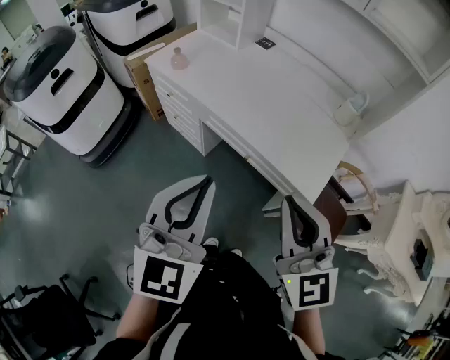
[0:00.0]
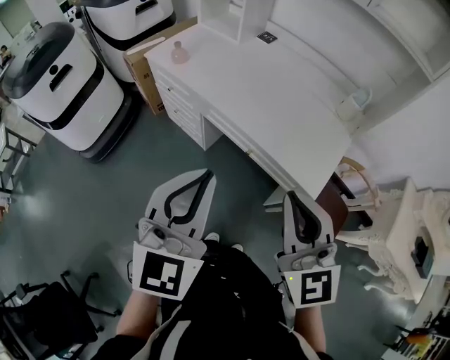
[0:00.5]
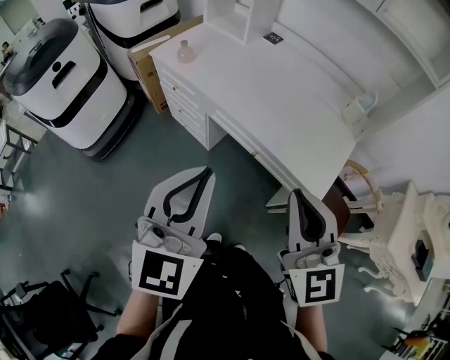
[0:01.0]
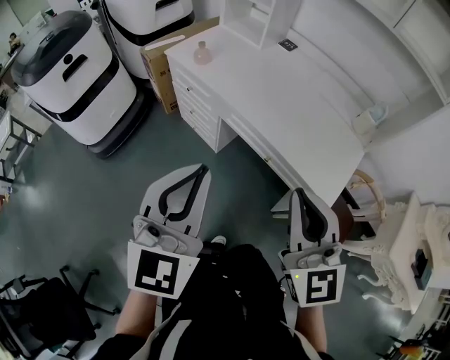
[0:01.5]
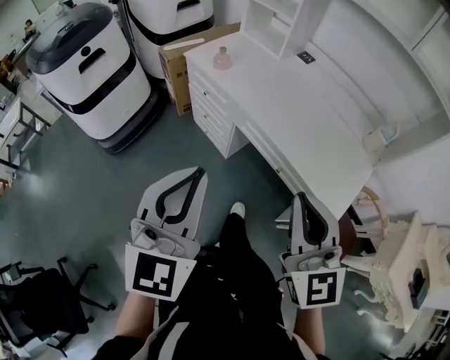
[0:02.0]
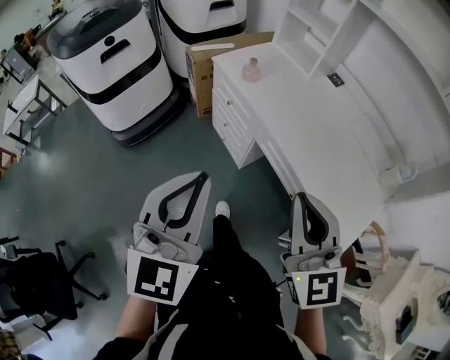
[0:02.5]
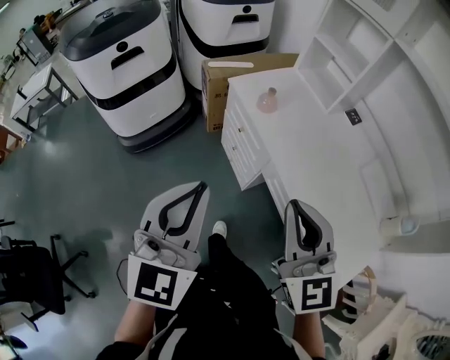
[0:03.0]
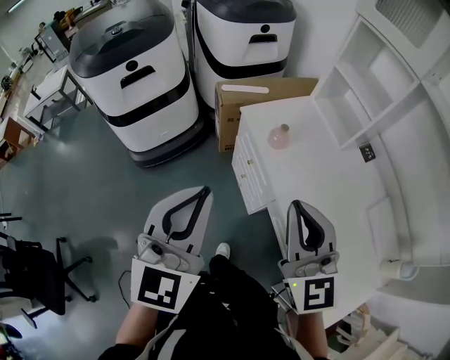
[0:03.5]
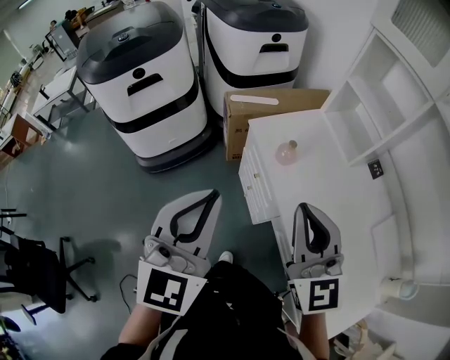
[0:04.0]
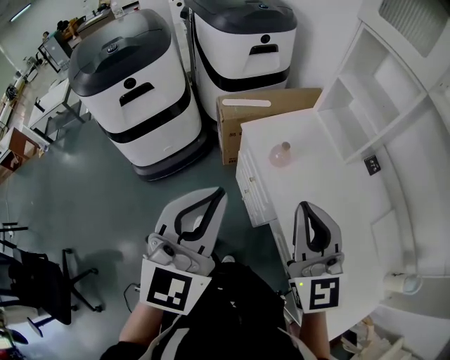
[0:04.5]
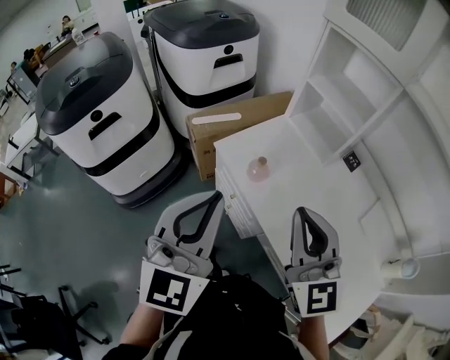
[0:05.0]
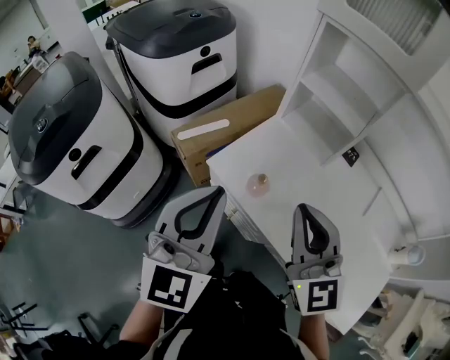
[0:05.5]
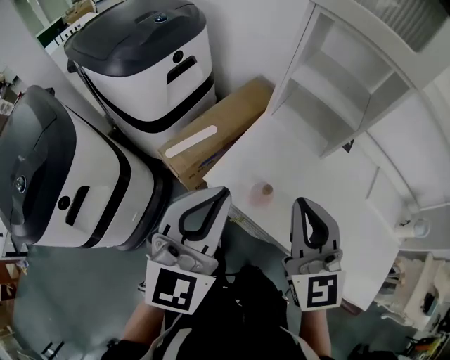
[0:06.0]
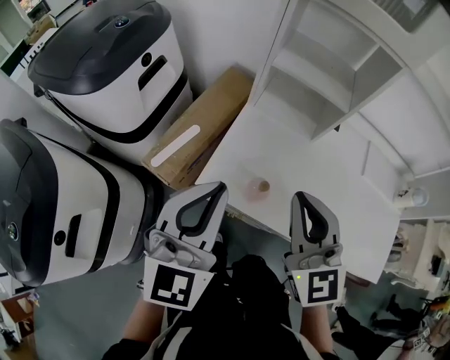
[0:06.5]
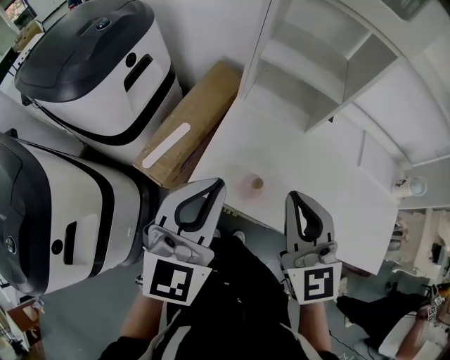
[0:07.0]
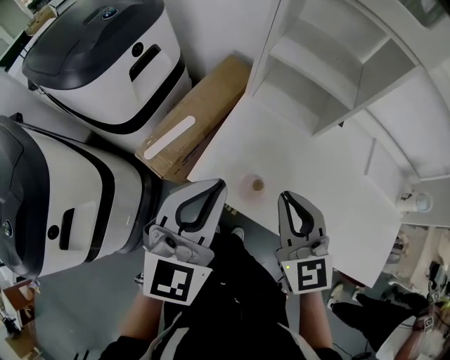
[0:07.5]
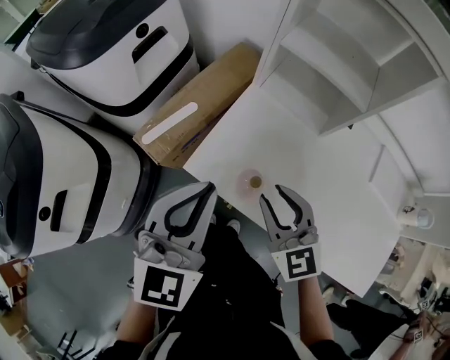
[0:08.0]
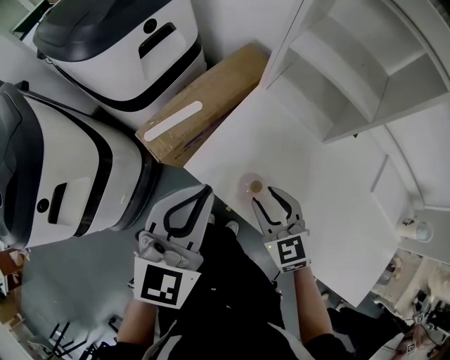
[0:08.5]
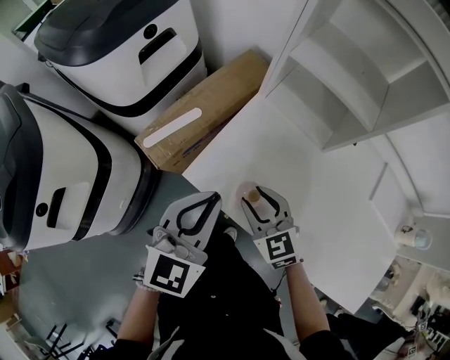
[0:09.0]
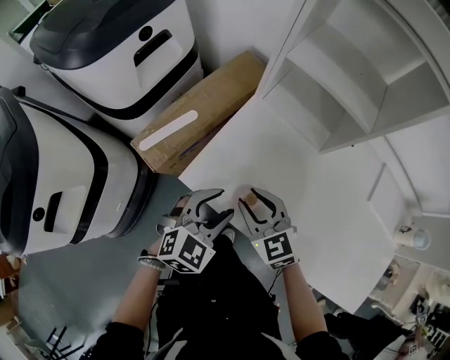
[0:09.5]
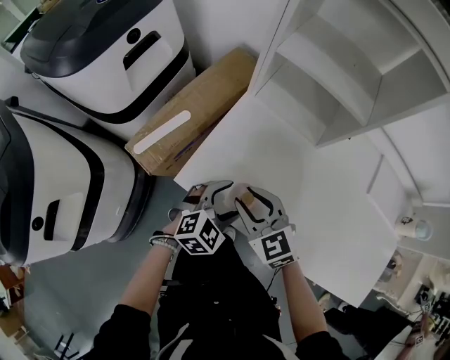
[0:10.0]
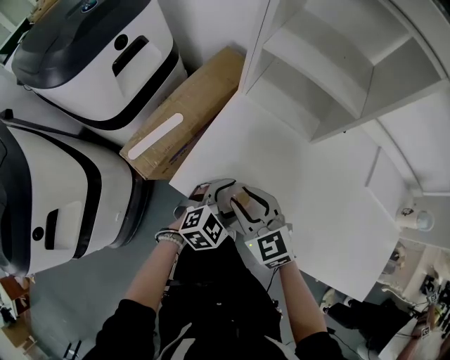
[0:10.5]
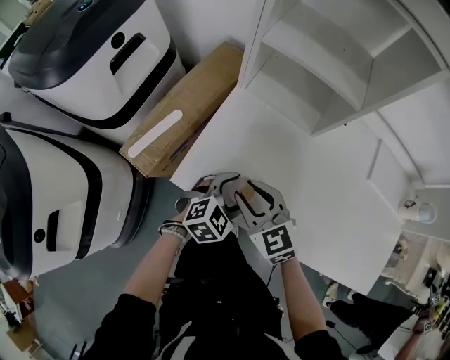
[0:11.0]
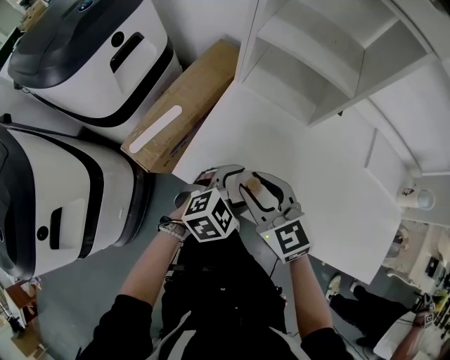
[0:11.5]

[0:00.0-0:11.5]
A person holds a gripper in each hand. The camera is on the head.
0:00.0 to 0:02.0: The two grippers go approximately 10 cm to the left.
0:02.0 to 0:04.0: Both grippers travel together forward, approximately 35 cm. The right gripper swivels about 20 degrees. Meanwhile the left gripper turns by about 20 degrees.
0:04.0 to 0:06.0: The right gripper moves about 20 cm, and changes its angle by approximately 30 degrees; the left gripper shifts by roughly 30 cm, and turns by approximately 40 degrees.
0:06.0 to 0:07.5: The right gripper moves downward, roughly 10 cm. Meanwhile the left gripper moves forward, roughly 5 cm.
0:07.5 to 0:09.5: Both grippers move downward, about 20 cm. The left gripper rotates about 30 degrees, and opens; the right gripper turns by approximately 30 degrees, and opens up.
0:09.5 to 0:11.5: The right gripper travels upward by some 5 cm. The left gripper shifts approximately 5 cm to the right, swivels approximately 20 degrees, and opens up.

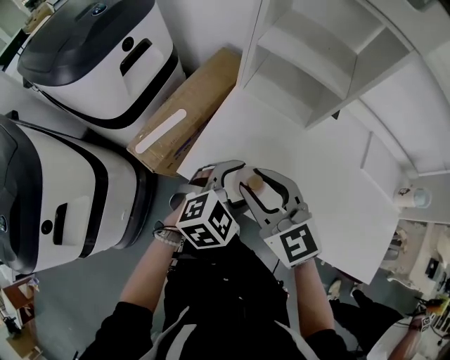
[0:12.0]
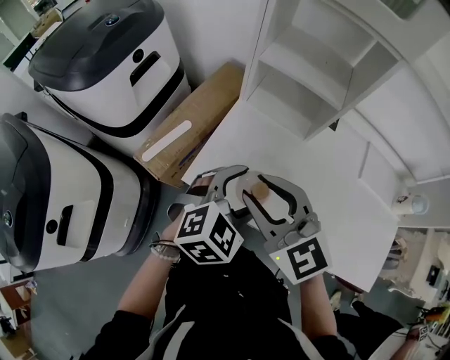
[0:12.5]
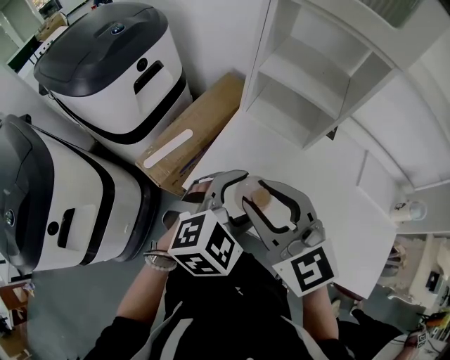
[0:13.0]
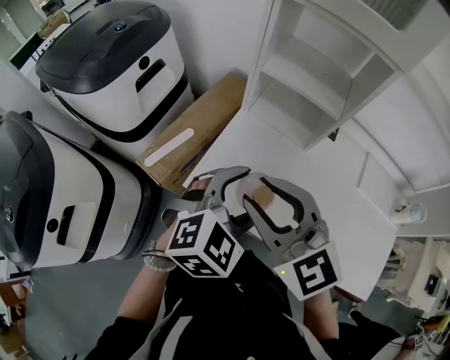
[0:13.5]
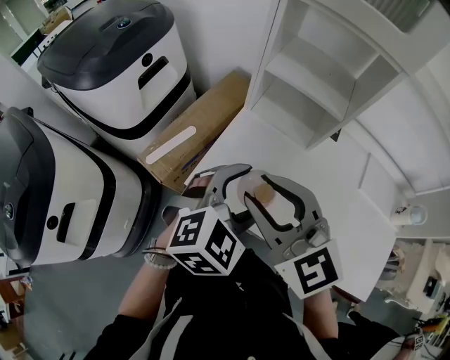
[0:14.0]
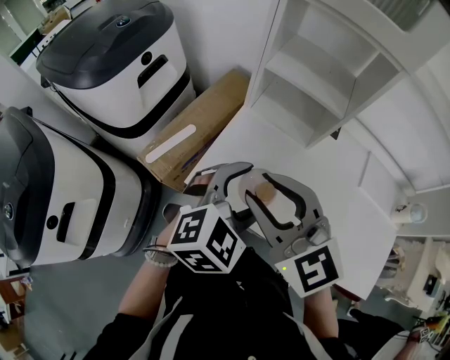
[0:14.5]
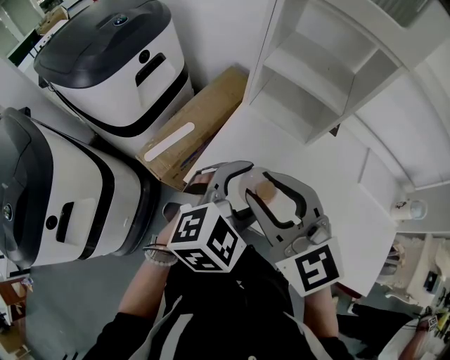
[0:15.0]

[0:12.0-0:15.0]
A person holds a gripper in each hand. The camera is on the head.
0:12.0 to 0:13.5: The grippers both shift upward by some 10 cm.
0:13.5 to 0:15.0: Neither gripper changes place.

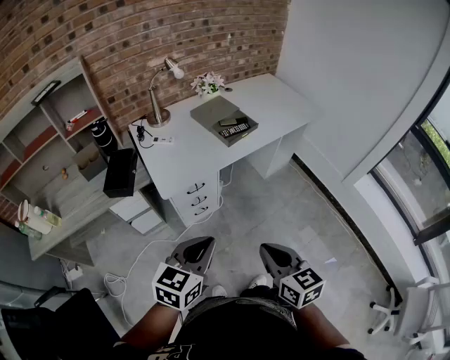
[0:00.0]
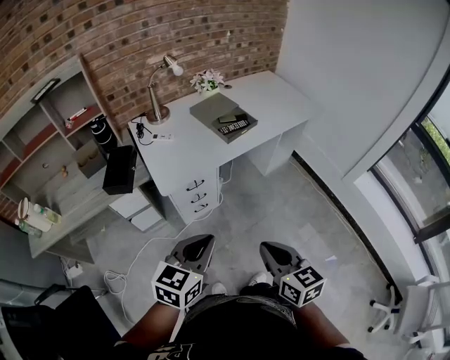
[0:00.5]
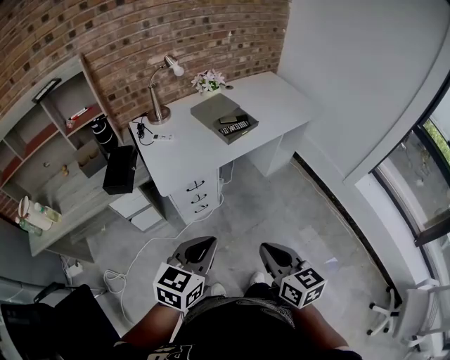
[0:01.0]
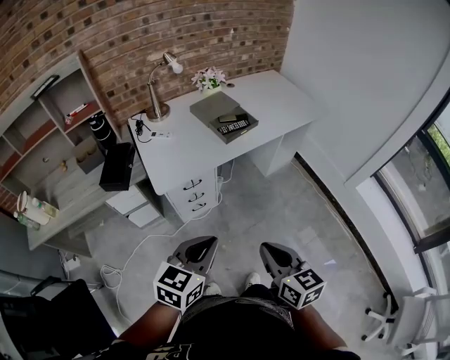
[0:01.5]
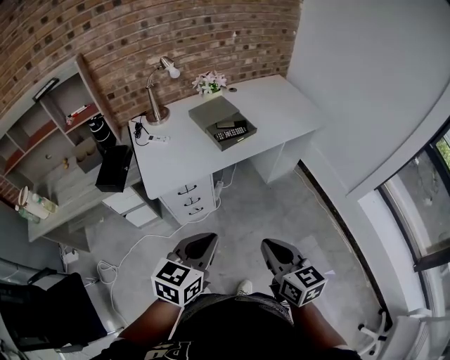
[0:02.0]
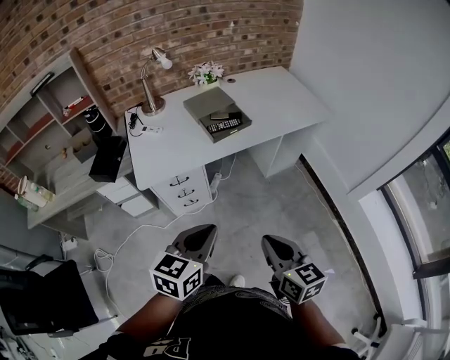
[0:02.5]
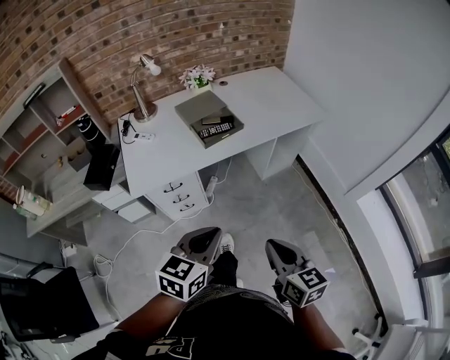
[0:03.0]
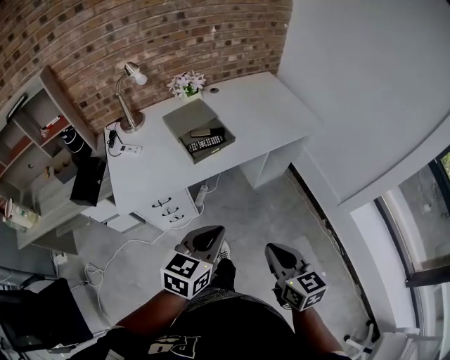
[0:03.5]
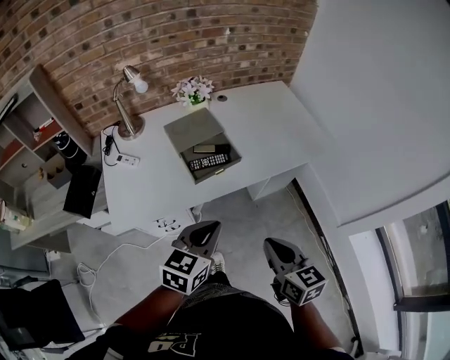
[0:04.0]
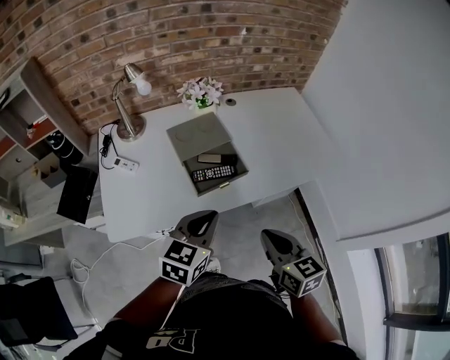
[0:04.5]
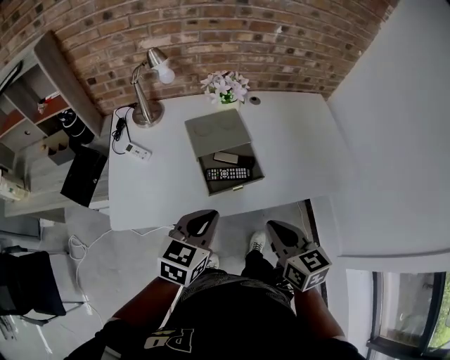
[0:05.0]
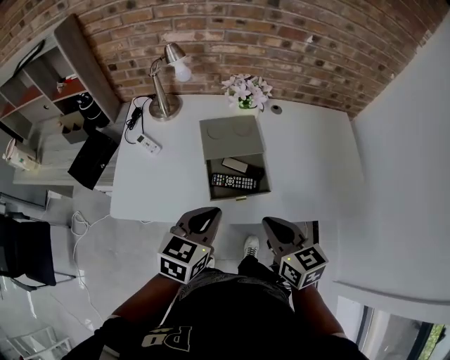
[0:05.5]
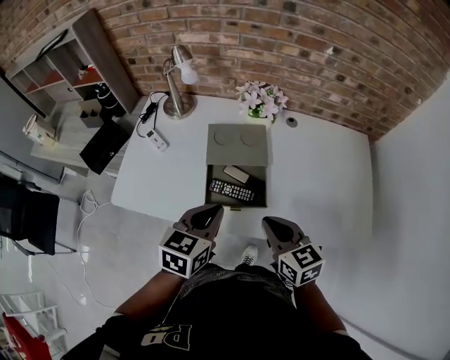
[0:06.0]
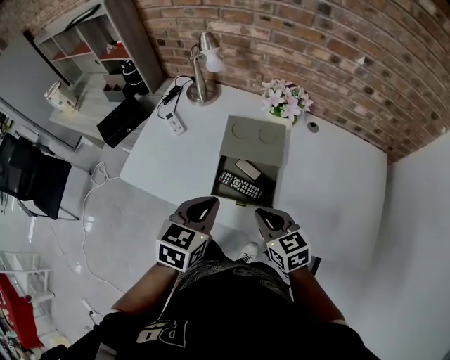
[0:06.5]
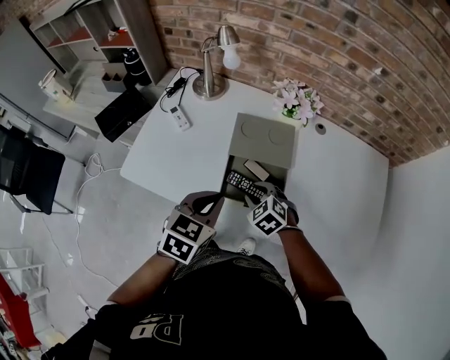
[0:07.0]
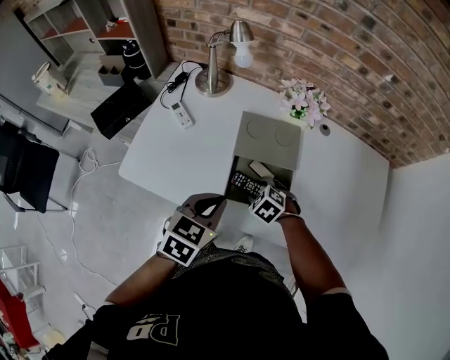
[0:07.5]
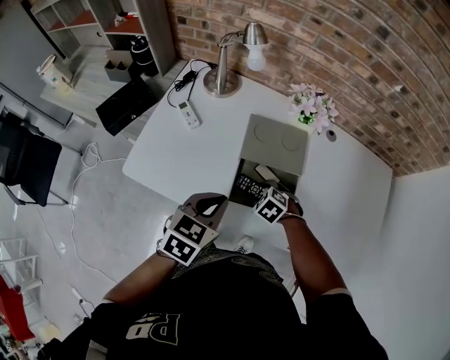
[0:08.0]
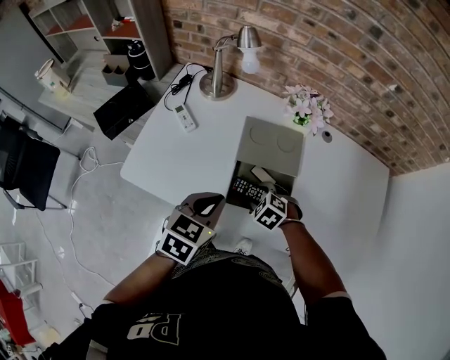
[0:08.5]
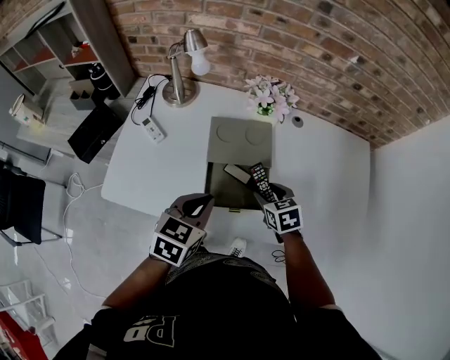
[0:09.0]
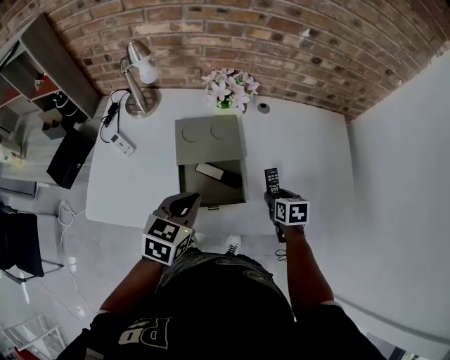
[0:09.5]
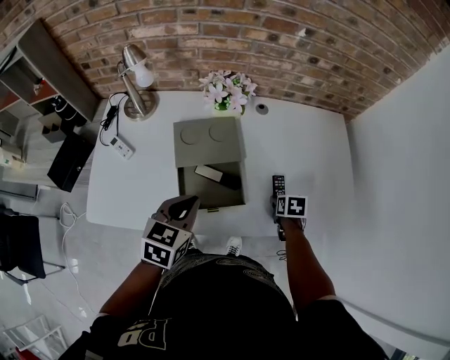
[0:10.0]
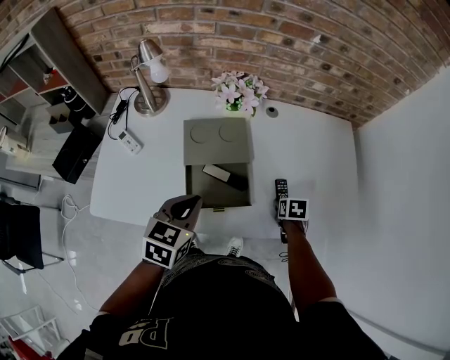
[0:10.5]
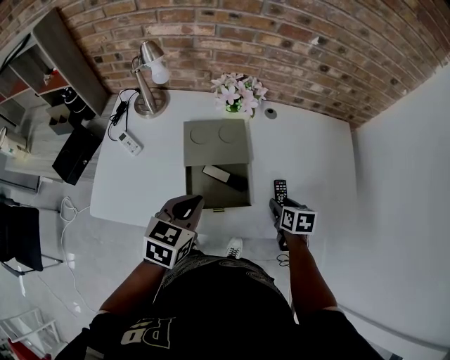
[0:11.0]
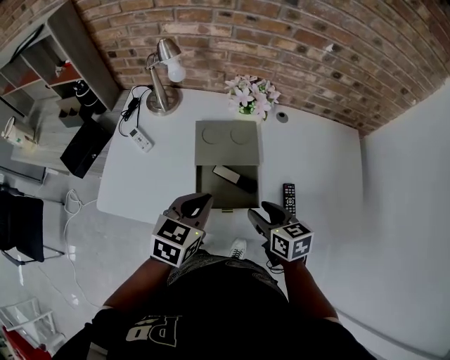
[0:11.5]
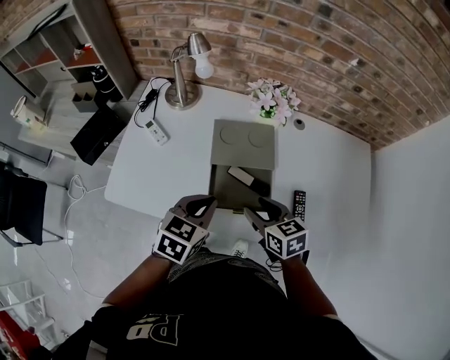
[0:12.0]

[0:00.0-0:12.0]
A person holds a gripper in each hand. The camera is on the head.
0:00.0 to 0:02.0: Both grippers move to the right and forward, roughly 10 cm.
0:02.0 to 0:04.0: Both grippers move forward and to the right, roughly 30 cm.
0:04.0 to 0:06.0: The right gripper moves roughly 30 cm, and swivels some 40 degrees. Meanwhile the left gripper shifts by about 20 cm, and rotates roughly 30 degrees.
0:06.0 to 0:08.0: The left gripper moves to the left, some 10 cm; the right gripper travels downward and forward by about 25 cm, angles its fingers downward, by some 50 degrees, and opens up.
0:08.0 to 0:10.0: The right gripper goes upward and returns, some 10 cm each way, and twists about 80 degrees clockwise, seen from behind. Meanwhile the left gripper changes place by some 10 cm.
0:10.0 to 0:12.0: The right gripper goes about 25 cm to the left and upward, and changes its angle by some 50 degrees.
